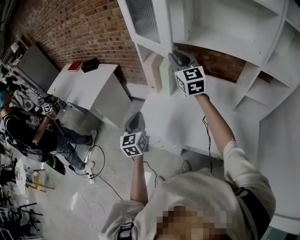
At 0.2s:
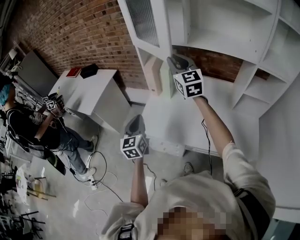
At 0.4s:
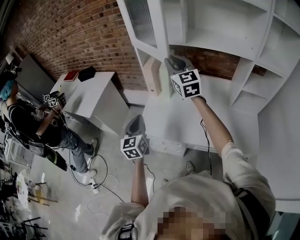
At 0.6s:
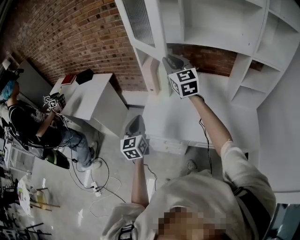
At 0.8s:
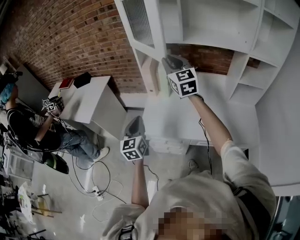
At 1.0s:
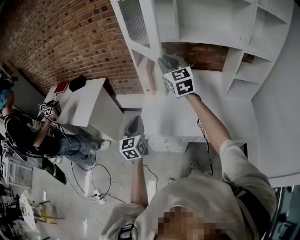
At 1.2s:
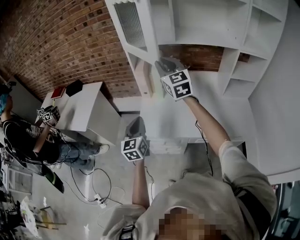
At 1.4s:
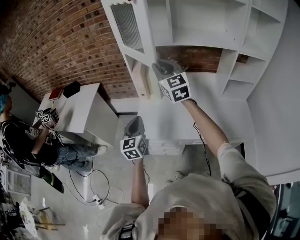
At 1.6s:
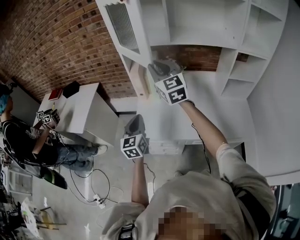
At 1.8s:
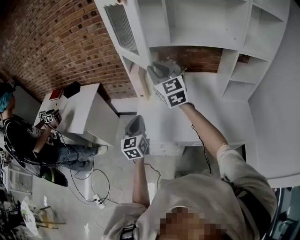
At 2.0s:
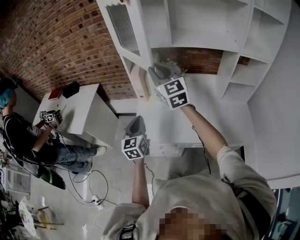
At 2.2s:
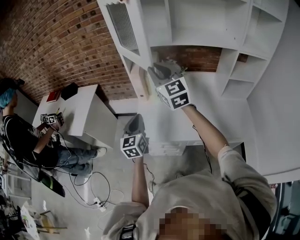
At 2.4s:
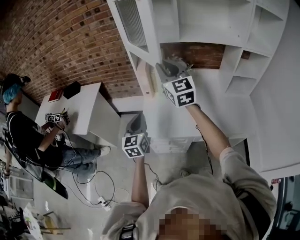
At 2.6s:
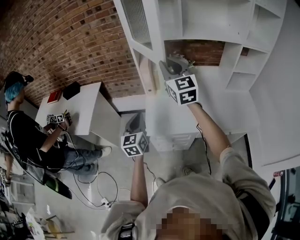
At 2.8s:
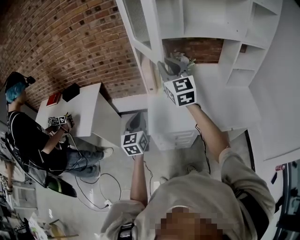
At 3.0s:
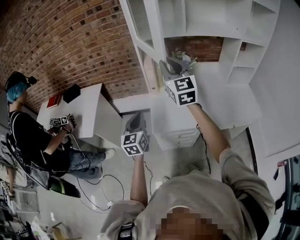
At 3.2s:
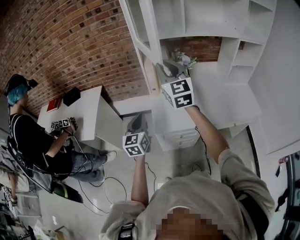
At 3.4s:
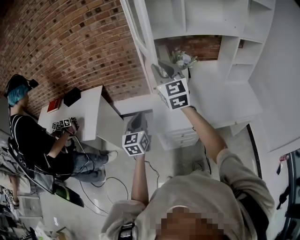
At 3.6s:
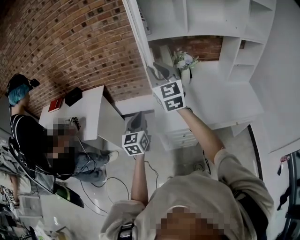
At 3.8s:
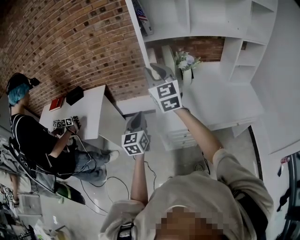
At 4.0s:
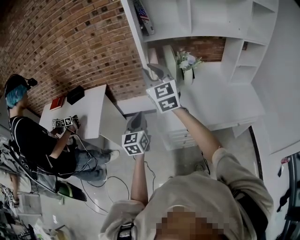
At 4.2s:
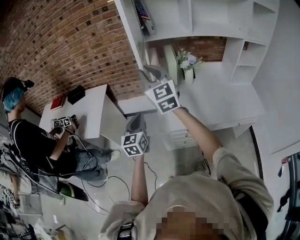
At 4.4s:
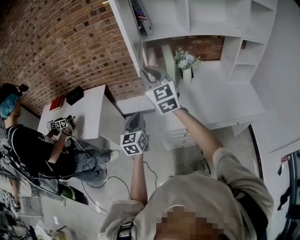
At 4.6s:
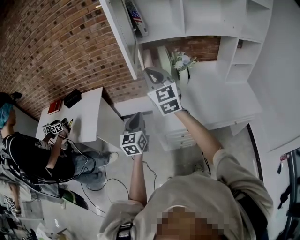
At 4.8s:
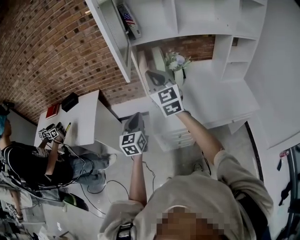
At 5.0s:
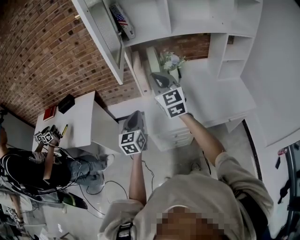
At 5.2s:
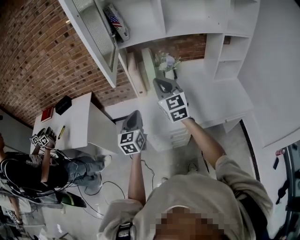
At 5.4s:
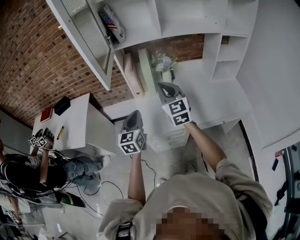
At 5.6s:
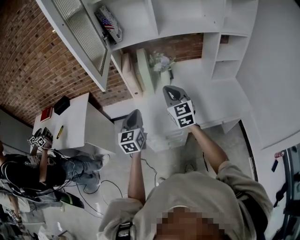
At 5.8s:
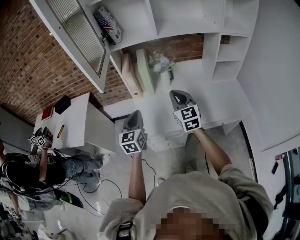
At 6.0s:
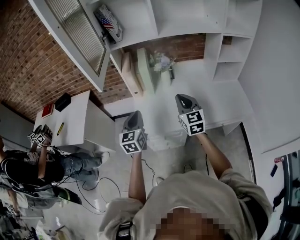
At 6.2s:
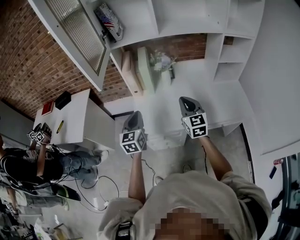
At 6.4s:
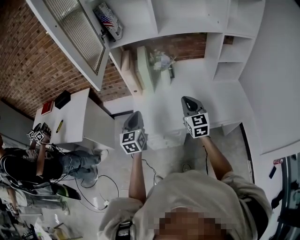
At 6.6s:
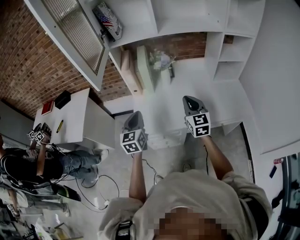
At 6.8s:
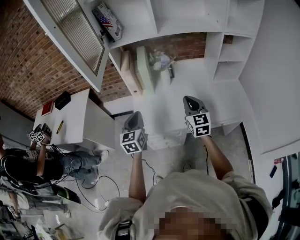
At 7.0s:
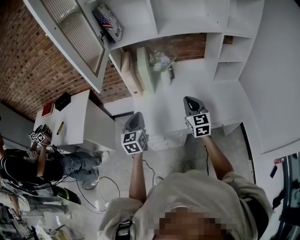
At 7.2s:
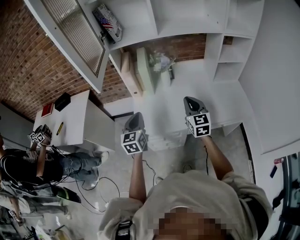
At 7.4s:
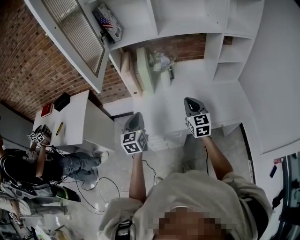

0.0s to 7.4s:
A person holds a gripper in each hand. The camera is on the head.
0.0s to 1.4s: The right gripper goes about 10 cm to the left and backward.
1.4s to 3.0s: The two grippers go some 10 cm to the left.
3.0s to 4.4s: The right gripper is displaced to the left by roughly 10 cm.
4.4s to 6.0s: The left gripper moves to the right, about 15 cm. Meanwhile the right gripper travels to the right and downward by some 35 cm.
6.0s to 7.4s: The right gripper ends up about 5 cm from where it was.

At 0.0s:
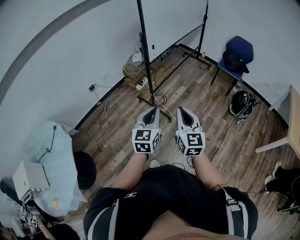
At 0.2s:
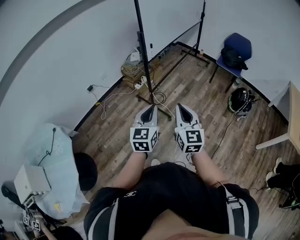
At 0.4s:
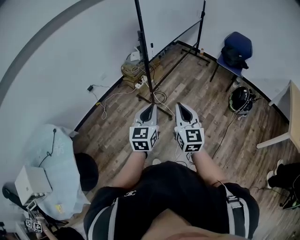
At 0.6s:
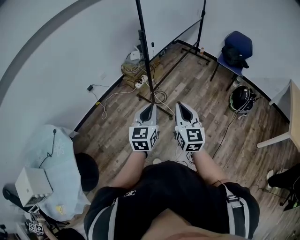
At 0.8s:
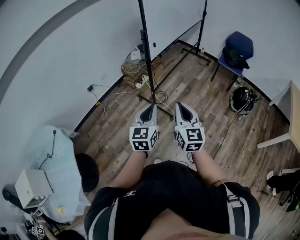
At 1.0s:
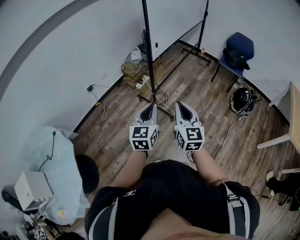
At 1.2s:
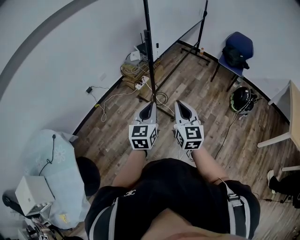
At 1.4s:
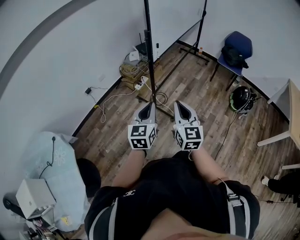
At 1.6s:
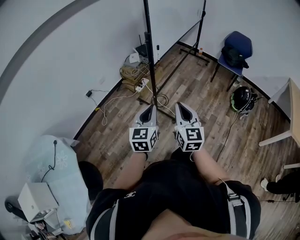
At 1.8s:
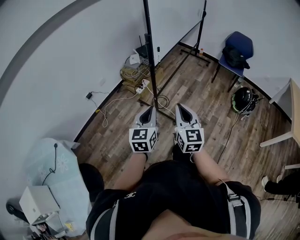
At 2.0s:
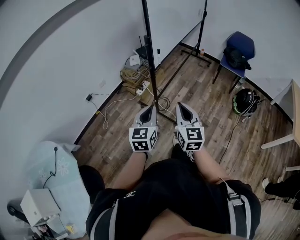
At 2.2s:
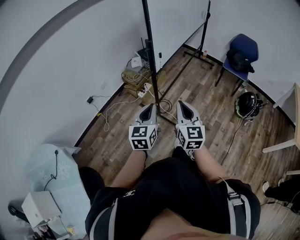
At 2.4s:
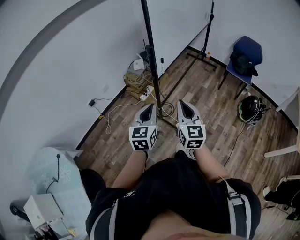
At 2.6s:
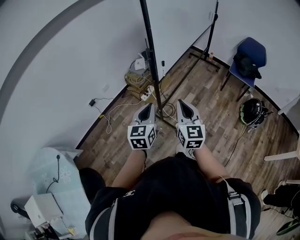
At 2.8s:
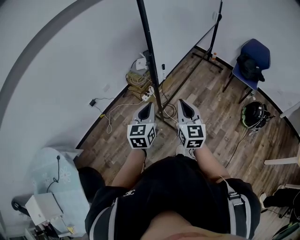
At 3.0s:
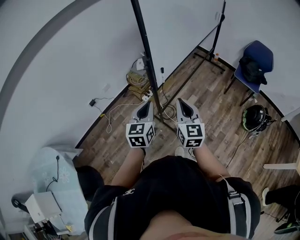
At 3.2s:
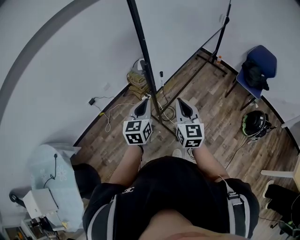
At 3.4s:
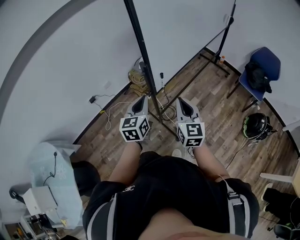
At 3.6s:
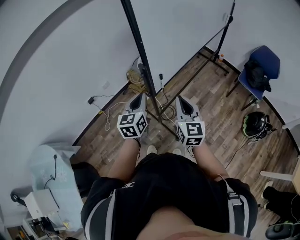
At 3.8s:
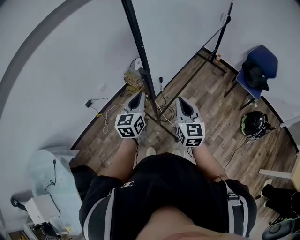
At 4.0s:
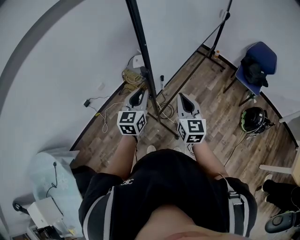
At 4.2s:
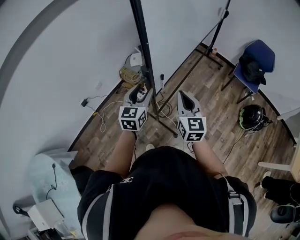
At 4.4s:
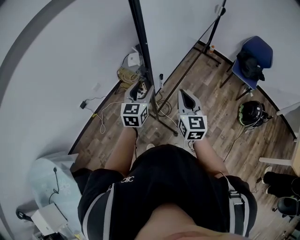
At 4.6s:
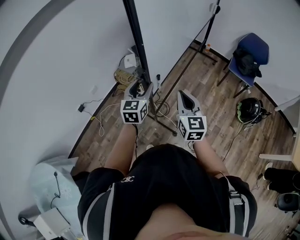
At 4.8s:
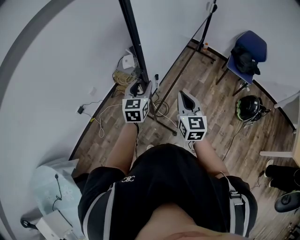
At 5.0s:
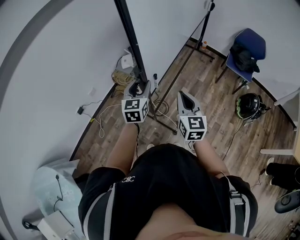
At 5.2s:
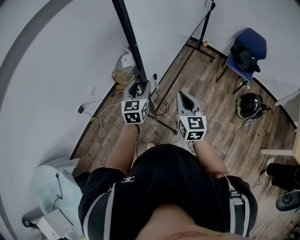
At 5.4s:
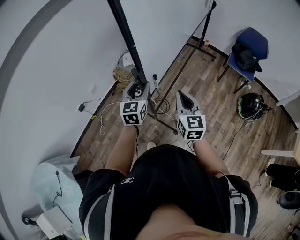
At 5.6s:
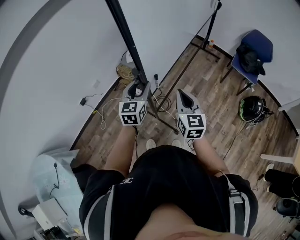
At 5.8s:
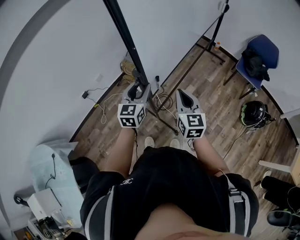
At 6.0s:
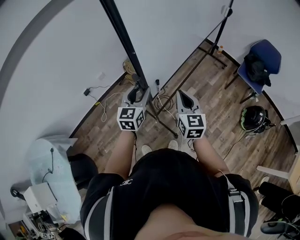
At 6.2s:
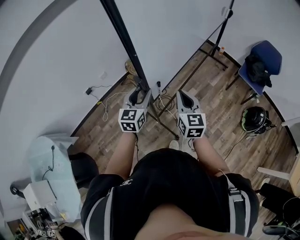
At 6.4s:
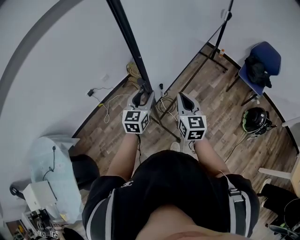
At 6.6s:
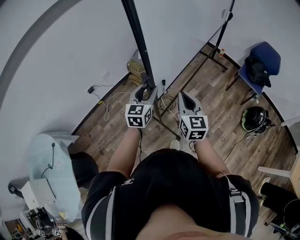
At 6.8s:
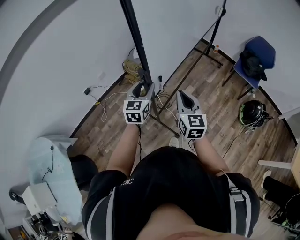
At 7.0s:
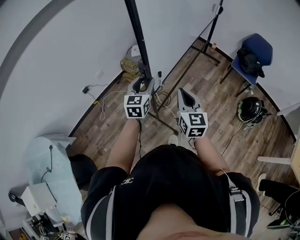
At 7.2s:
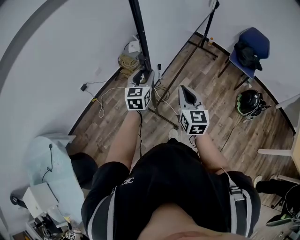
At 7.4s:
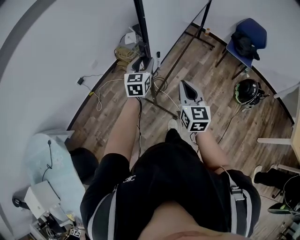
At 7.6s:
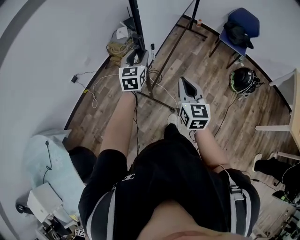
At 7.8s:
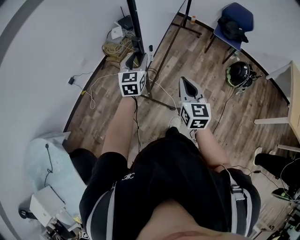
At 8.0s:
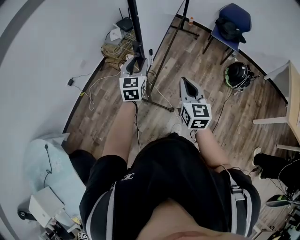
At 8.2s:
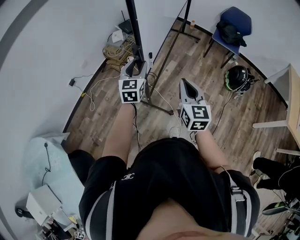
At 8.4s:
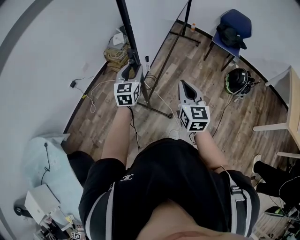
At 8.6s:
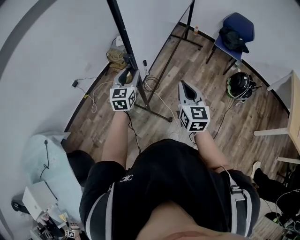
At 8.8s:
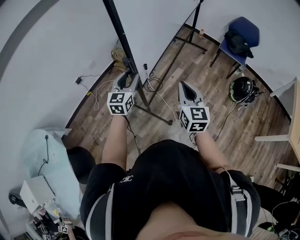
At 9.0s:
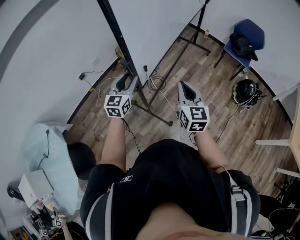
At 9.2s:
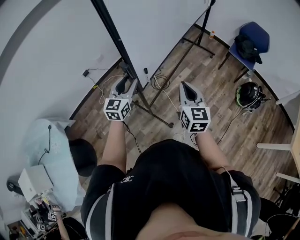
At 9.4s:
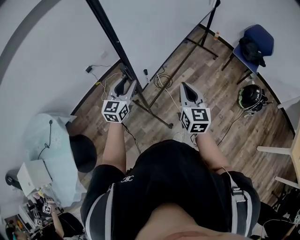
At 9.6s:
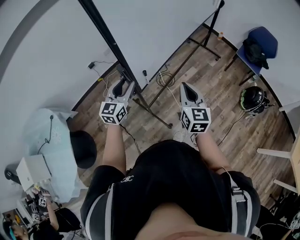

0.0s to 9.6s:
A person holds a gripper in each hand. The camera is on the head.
0.0s to 1.6s: Both grippers move to the left and forward, about 10 cm.
1.6s to 3.2s: The two grippers go about 30 cm forward.
3.2s to 4.8s: The left gripper goes approximately 15 cm forward, and opens up, while the right gripper travels forward by roughly 10 cm.
4.8s to 6.4s: The right gripper travels backward by approximately 5 cm, while the left gripper shifts some 10 cm backward.
6.4s to 8.0s: The right gripper heads backward, covering approximately 20 cm, while the left gripper shifts approximately 10 cm backward.
8.0s to 9.6s: The left gripper moves backward and to the left, about 15 cm.

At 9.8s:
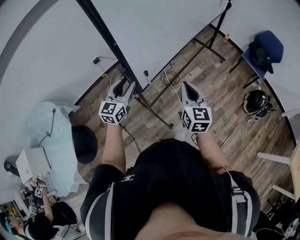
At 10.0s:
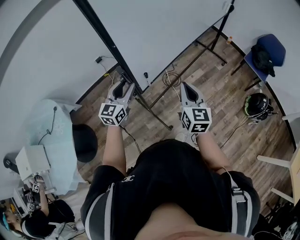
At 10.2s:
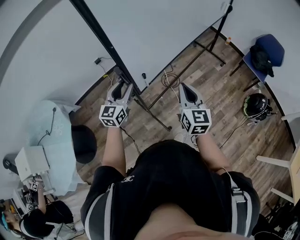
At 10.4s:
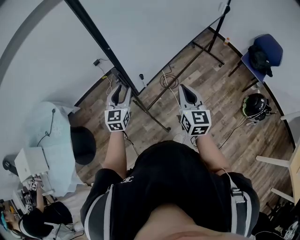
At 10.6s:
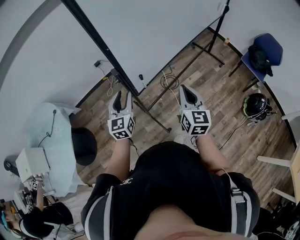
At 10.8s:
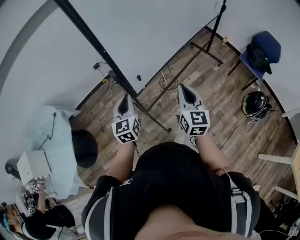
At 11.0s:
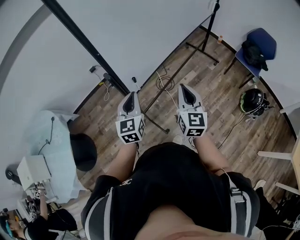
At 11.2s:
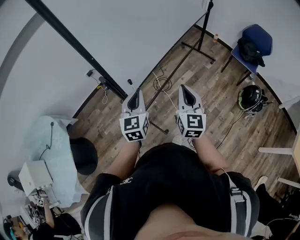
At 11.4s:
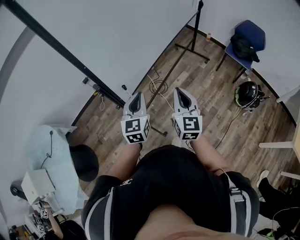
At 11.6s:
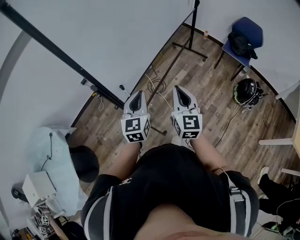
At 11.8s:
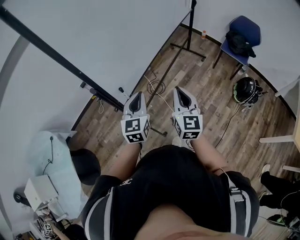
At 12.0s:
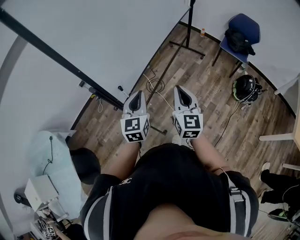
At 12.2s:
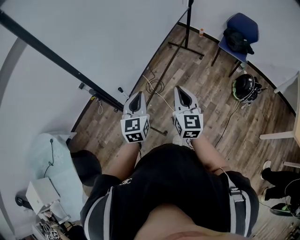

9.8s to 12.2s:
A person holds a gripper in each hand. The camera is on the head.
9.8s to 11.0s: The left gripper shifts about 10 cm to the right and backward, rotates approximately 20 degrees, and closes its fingers.
11.0s to 12.2s: The left gripper shifts some 10 cm to the right.

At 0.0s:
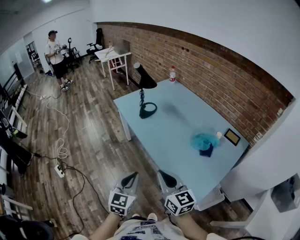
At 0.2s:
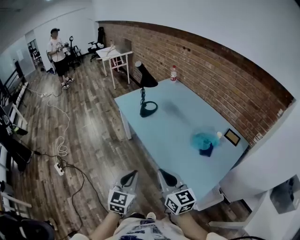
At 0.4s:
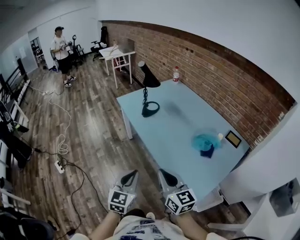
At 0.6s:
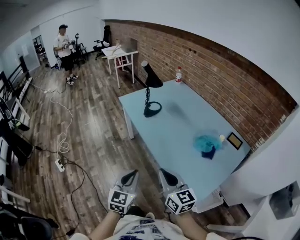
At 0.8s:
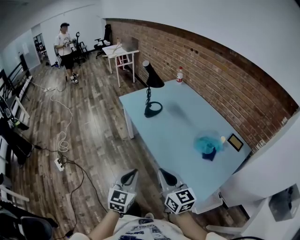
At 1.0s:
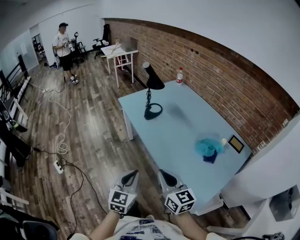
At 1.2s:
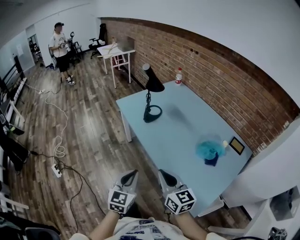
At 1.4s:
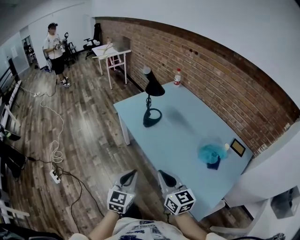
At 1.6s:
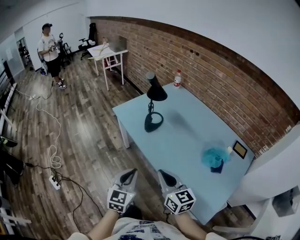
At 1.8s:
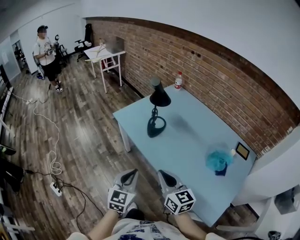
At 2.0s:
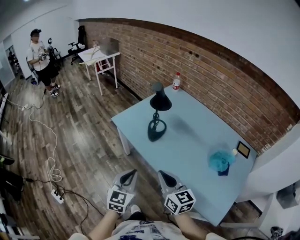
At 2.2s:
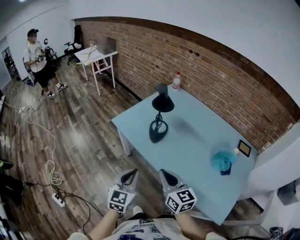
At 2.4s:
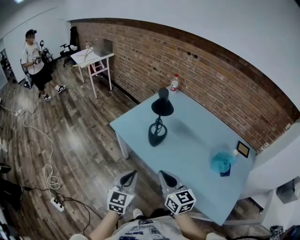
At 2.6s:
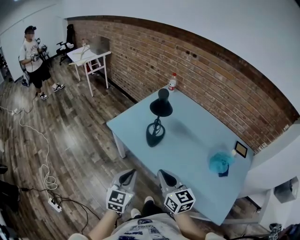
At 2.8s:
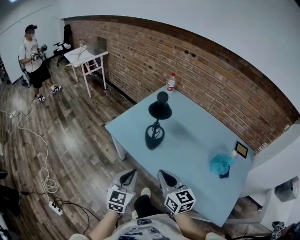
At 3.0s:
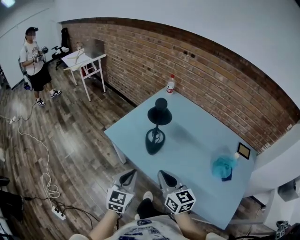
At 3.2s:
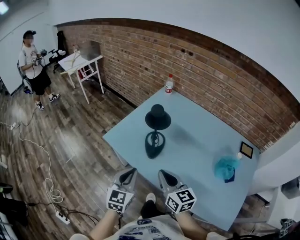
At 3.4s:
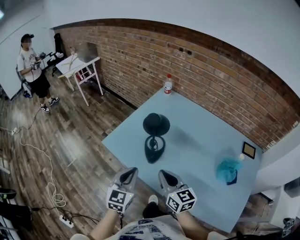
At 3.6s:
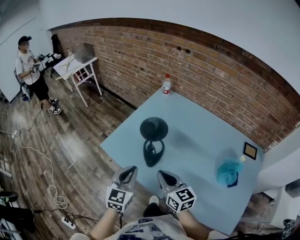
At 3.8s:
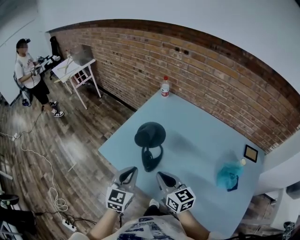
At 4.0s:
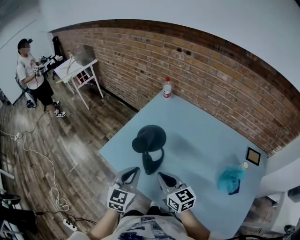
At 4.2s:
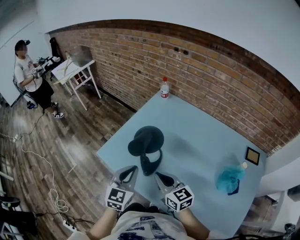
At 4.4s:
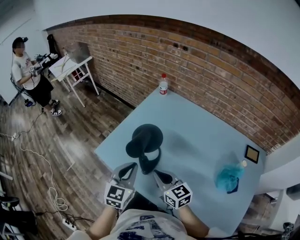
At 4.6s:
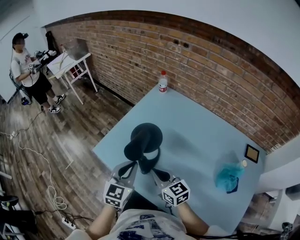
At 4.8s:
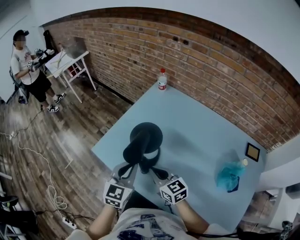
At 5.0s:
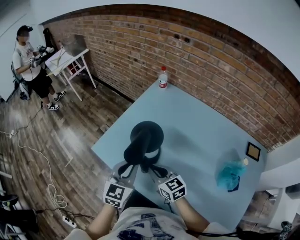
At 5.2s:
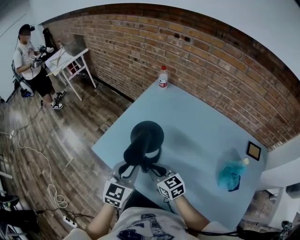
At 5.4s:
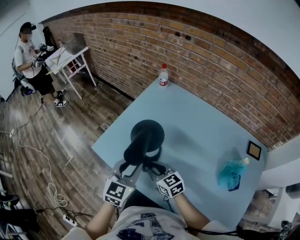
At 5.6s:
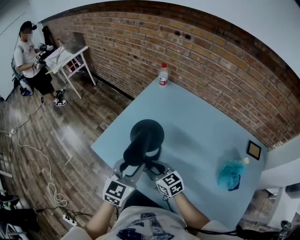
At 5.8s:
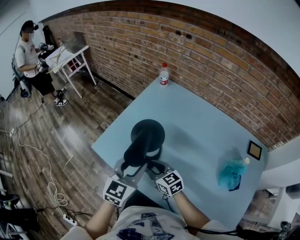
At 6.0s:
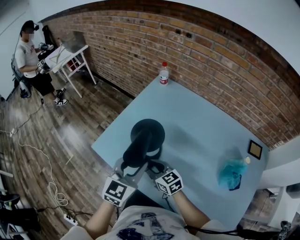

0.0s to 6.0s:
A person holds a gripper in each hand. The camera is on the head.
0.0s to 1.6s: The two grippers go approximately 20 cm forward and to the left.
1.6s to 3.0s: The two grippers go approximately 25 cm forward and to the left.
3.0s to 4.4s: Both grippers travel together forward, roughly 20 cm.
4.4s to 6.0s: The left gripper opens its fingers. Meanwhile the right gripper is displaced downward and forward by some 10 cm, and opens up.
